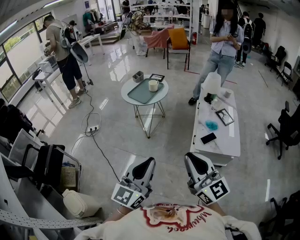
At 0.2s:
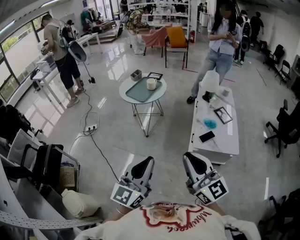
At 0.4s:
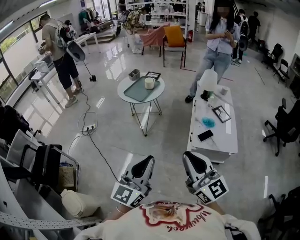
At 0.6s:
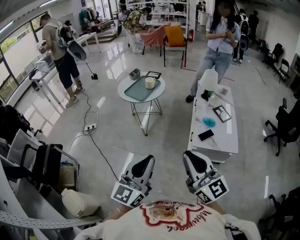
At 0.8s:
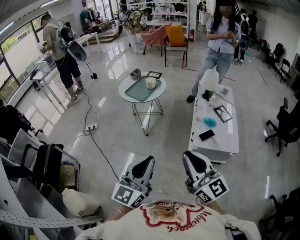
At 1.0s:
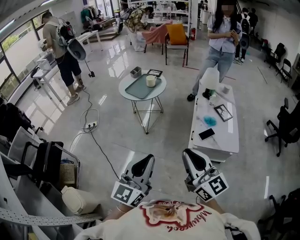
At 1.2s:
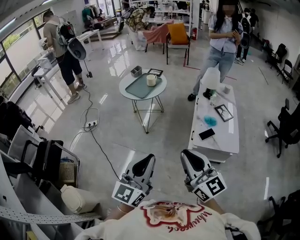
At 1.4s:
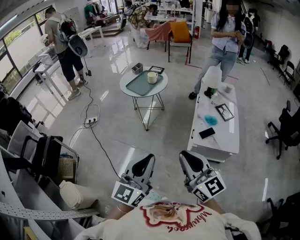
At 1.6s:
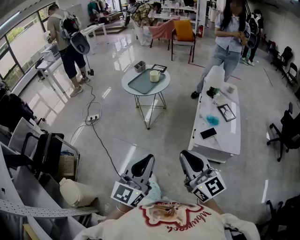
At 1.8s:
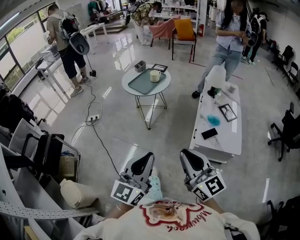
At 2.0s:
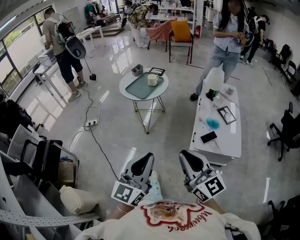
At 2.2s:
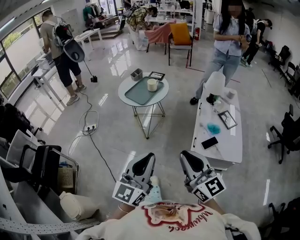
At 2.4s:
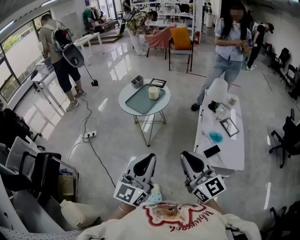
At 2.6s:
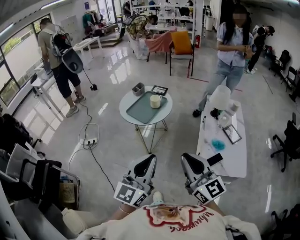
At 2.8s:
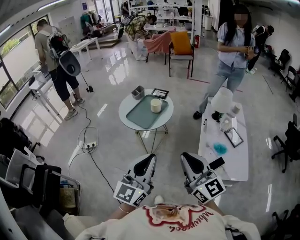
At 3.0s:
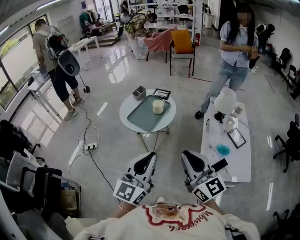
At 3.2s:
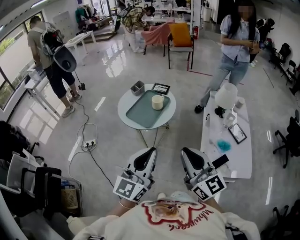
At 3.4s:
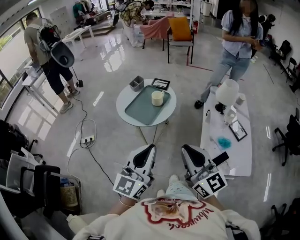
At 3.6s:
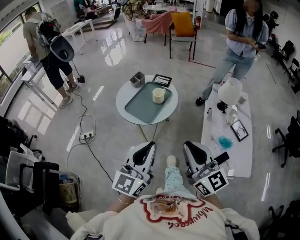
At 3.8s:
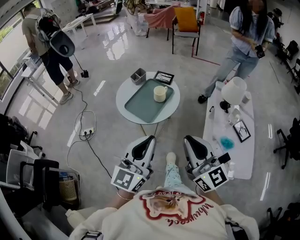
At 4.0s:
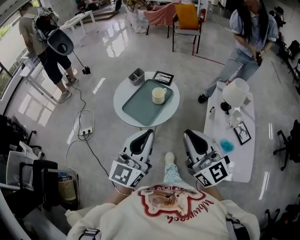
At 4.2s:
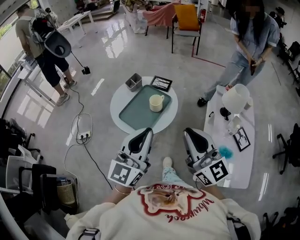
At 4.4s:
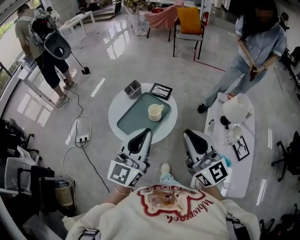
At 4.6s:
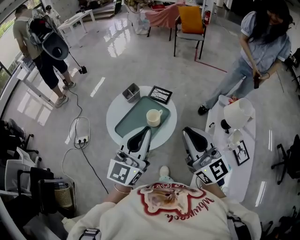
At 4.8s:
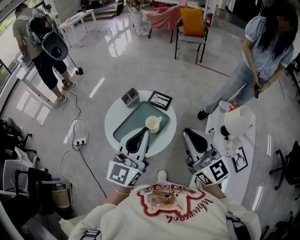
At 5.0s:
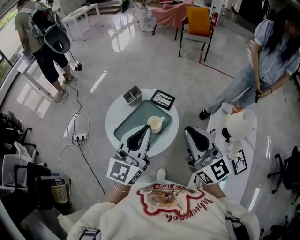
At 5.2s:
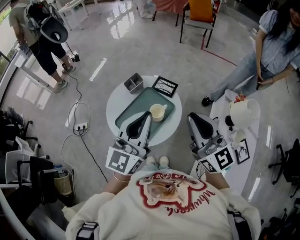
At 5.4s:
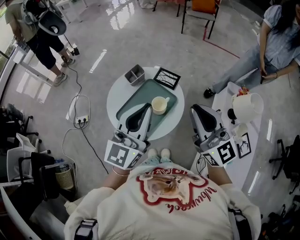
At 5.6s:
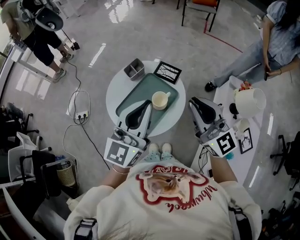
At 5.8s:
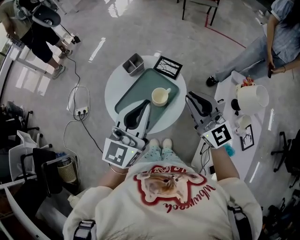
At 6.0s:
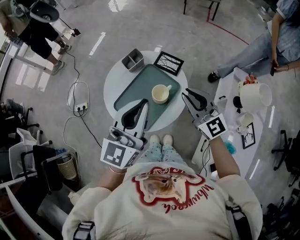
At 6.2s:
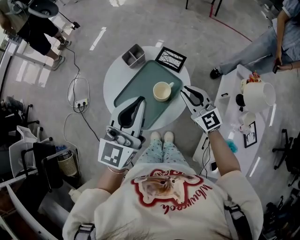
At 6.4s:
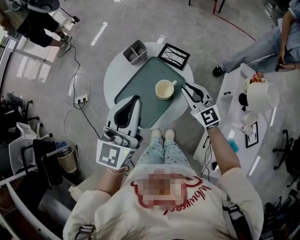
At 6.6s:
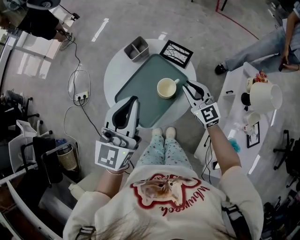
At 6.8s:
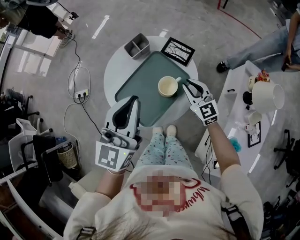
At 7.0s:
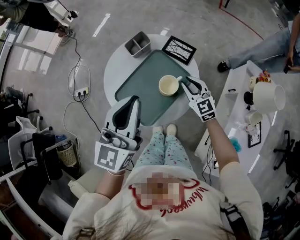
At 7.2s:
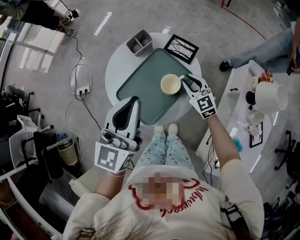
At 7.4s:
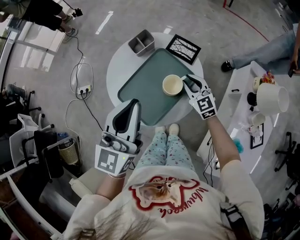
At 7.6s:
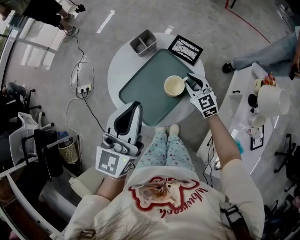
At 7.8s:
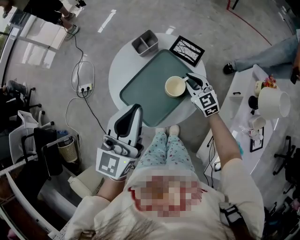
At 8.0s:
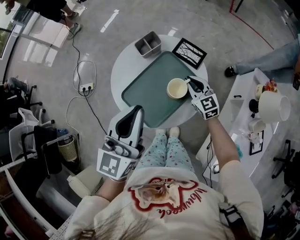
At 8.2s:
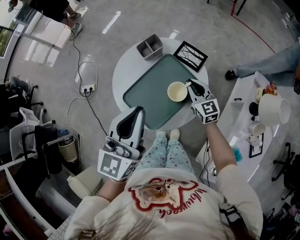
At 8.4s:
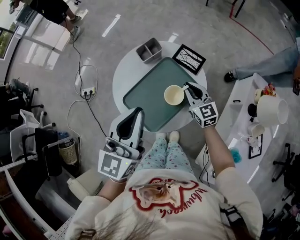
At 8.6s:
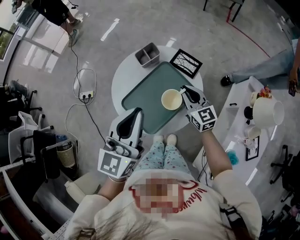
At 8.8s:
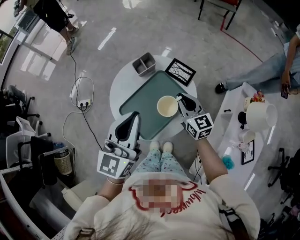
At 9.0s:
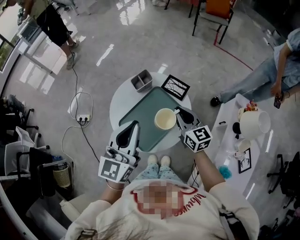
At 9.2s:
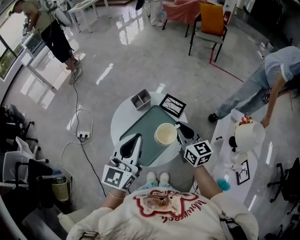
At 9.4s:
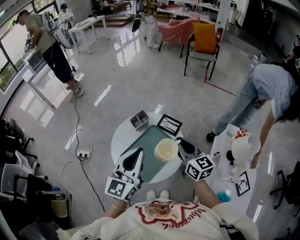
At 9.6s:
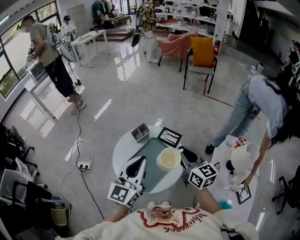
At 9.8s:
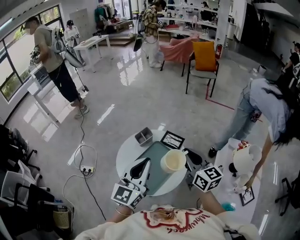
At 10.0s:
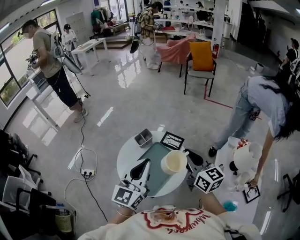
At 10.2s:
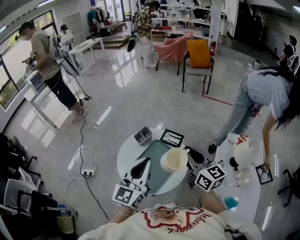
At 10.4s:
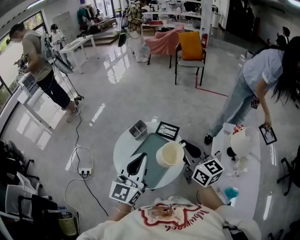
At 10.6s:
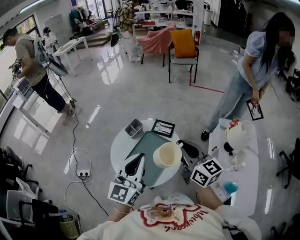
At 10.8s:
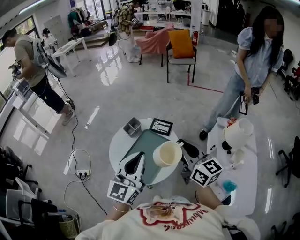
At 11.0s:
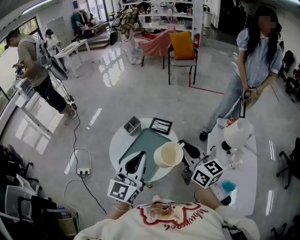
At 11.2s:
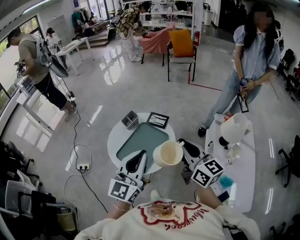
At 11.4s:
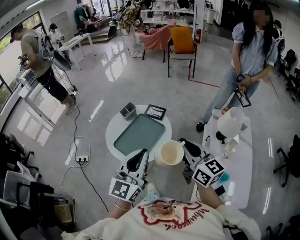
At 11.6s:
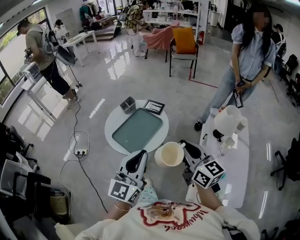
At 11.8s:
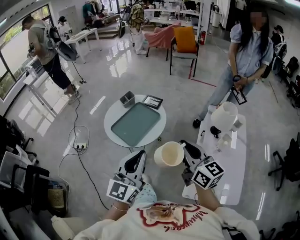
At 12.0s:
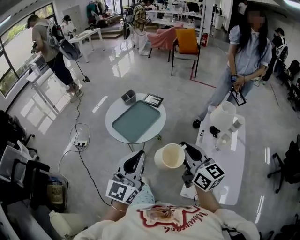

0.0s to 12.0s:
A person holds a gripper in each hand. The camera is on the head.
0.0s to 1.6s: The grippers stay close to where they were, moving slightly.
1.6s to 3.0s: The grippers both shift forward by about 30 cm.
3.0s to 4.4s: Both grippers travel together forward, approximately 25 cm.
4.4s to 6.0s: The right gripper travels forward and downward by roughly 25 cm, and turns by approximately 20 degrees; the left gripper goes roughly 15 cm forward.
6.0s to 7.6s: The left gripper moves to the left and downward, roughly 10 cm; the right gripper travels downward and forward by roughly 20 cm, and swivels approximately 20 degrees.
7.6s to 9.0s: The right gripper is displaced upward by approximately 15 cm, and swivels about 20 degrees.
9.0s to 10.4s: The right gripper goes some 15 cm upward.
10.4s to 12.0s: Both grippers move backward, roughly 30 cm.

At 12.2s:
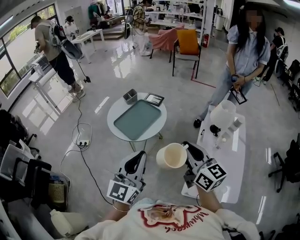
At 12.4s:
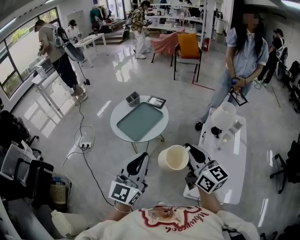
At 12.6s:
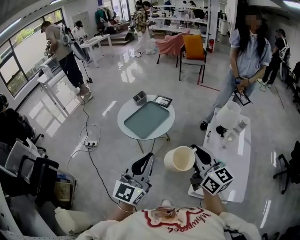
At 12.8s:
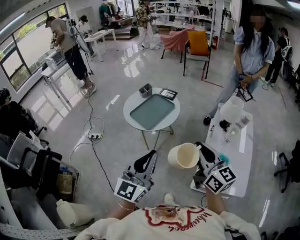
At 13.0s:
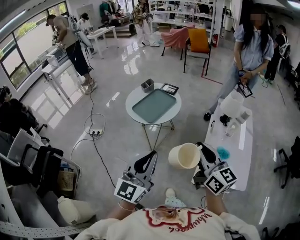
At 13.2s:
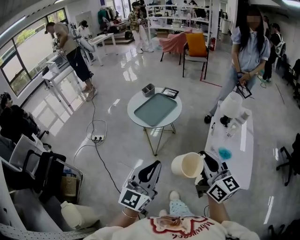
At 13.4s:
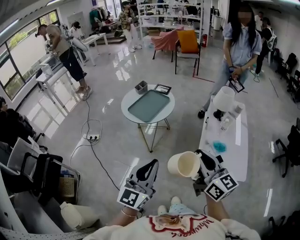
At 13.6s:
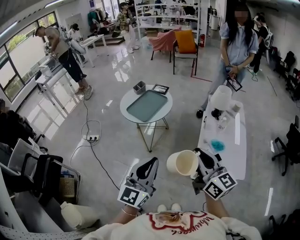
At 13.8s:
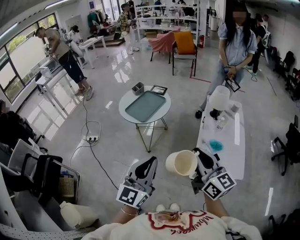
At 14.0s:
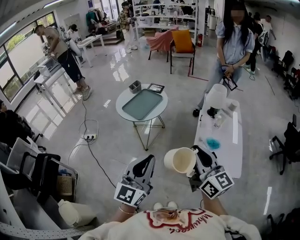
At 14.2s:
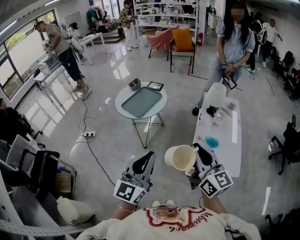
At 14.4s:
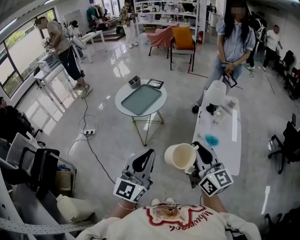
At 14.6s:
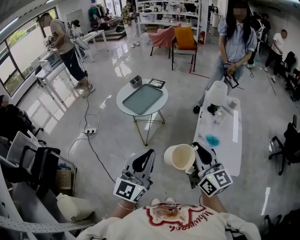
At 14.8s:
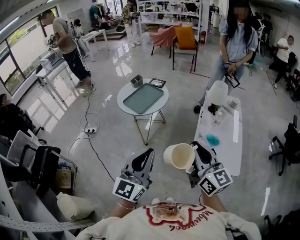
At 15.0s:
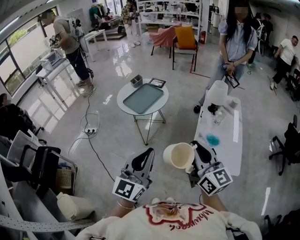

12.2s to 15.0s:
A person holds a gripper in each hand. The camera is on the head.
12.2s to 13.6s: Both grippers travel together backward, about 20 cm.
13.6s to 15.0s: There are only small adjustments of the grippers.

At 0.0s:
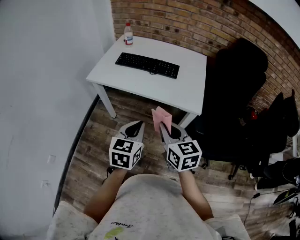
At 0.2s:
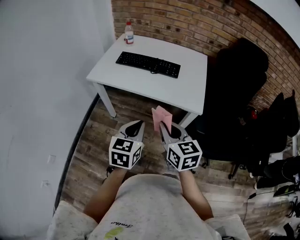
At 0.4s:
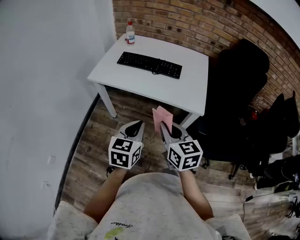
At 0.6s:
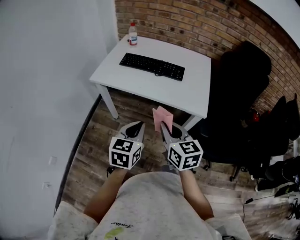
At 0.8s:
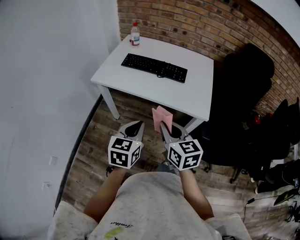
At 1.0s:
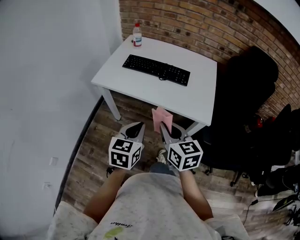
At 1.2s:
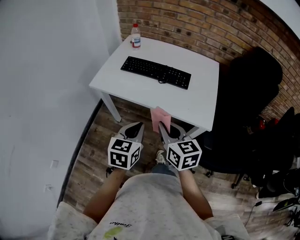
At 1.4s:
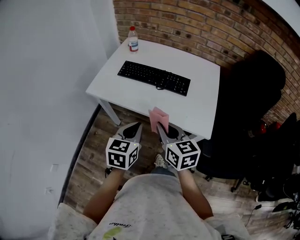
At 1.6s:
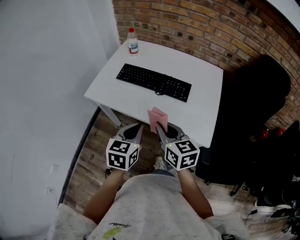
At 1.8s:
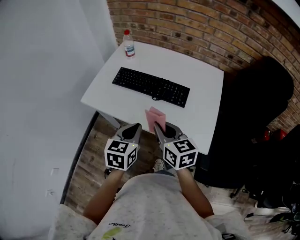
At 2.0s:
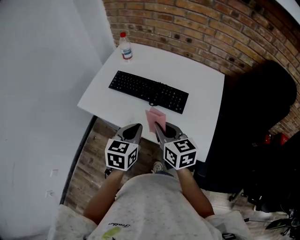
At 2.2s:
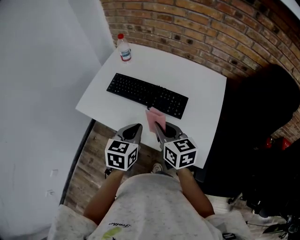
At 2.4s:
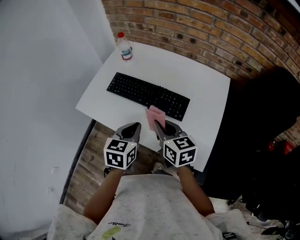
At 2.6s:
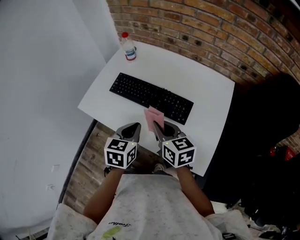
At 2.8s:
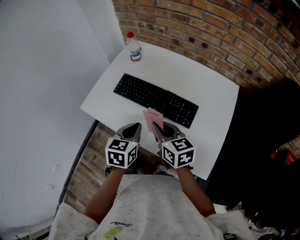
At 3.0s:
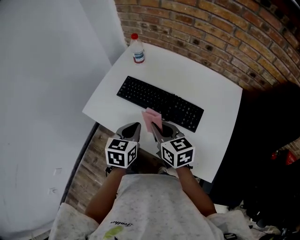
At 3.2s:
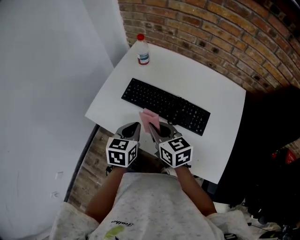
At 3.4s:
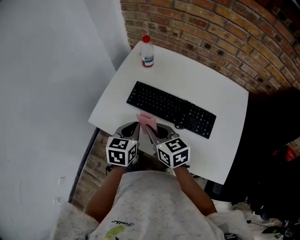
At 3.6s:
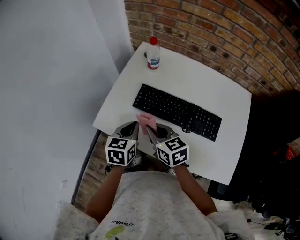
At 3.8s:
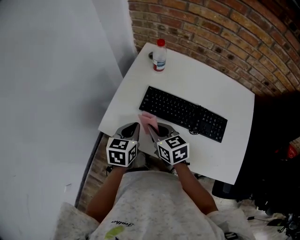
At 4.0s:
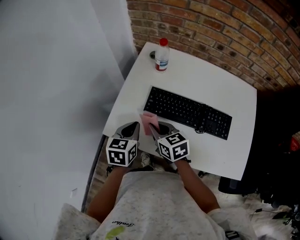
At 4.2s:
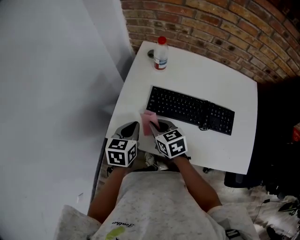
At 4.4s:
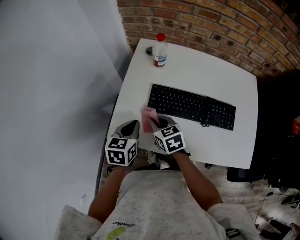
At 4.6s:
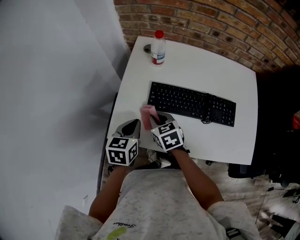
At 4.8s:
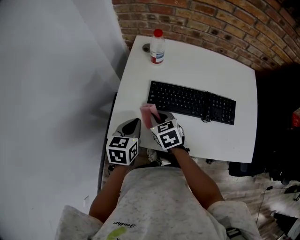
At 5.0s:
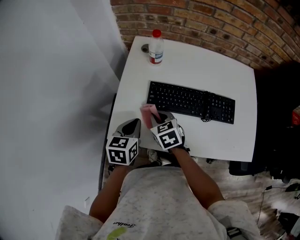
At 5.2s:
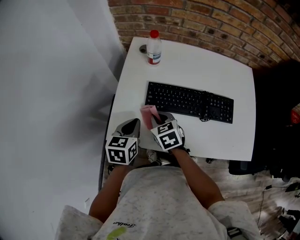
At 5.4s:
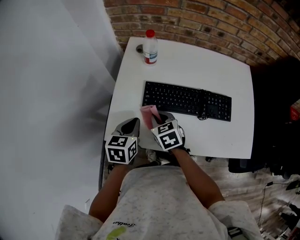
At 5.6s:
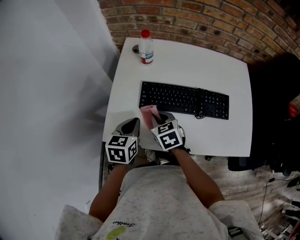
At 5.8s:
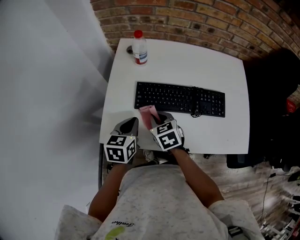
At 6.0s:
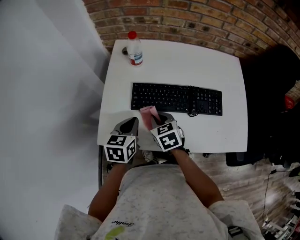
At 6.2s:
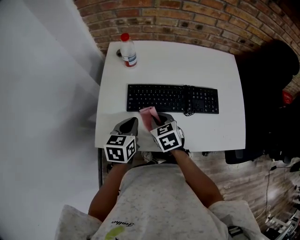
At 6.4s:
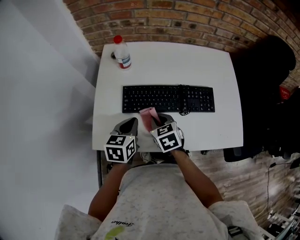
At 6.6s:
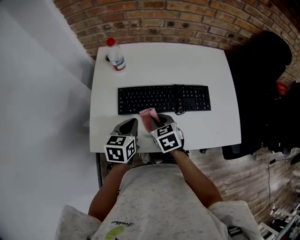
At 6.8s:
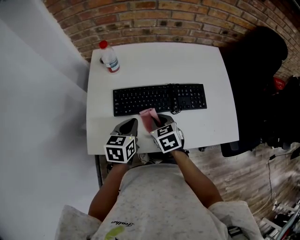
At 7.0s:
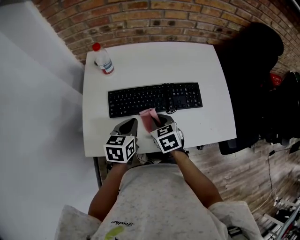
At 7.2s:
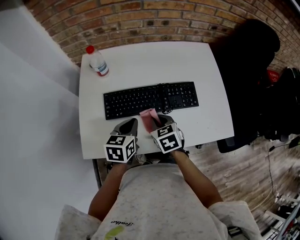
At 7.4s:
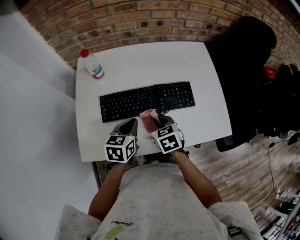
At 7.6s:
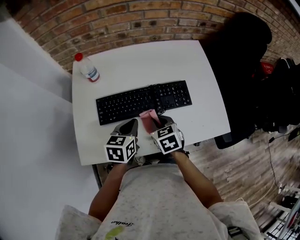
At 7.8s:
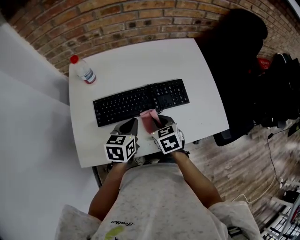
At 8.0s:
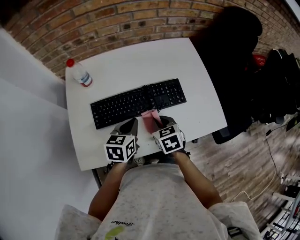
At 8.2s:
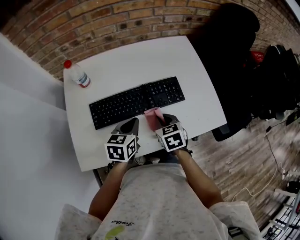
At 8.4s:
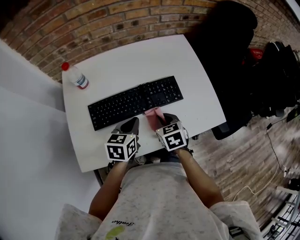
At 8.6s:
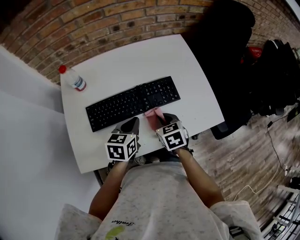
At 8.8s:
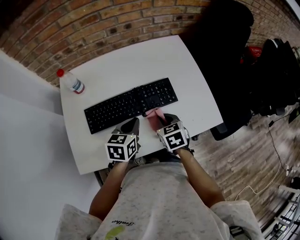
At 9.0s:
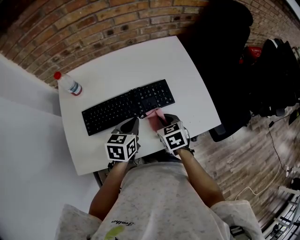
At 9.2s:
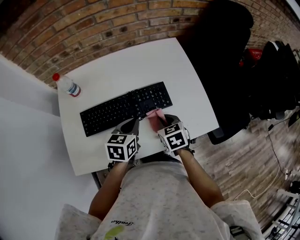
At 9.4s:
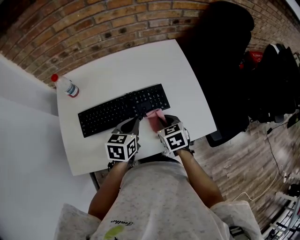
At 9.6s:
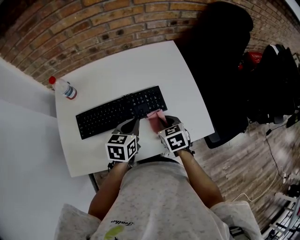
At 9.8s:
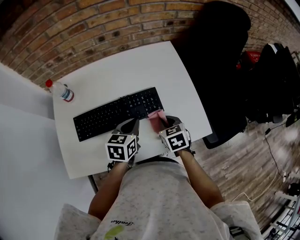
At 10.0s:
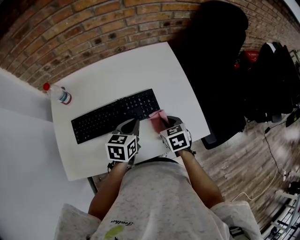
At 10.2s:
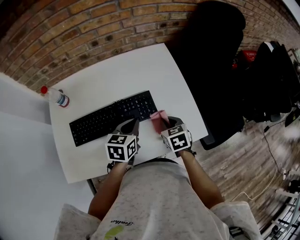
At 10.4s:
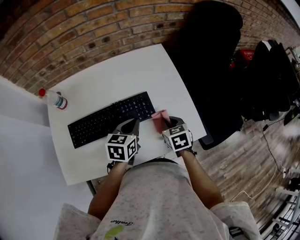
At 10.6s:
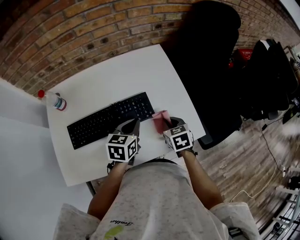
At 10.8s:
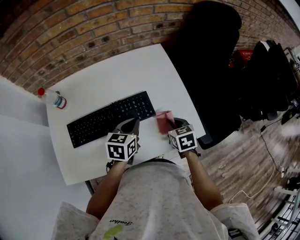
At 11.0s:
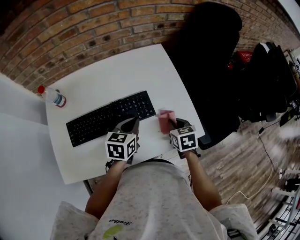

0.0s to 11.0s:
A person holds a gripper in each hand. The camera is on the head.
0.0s to 1.6s: The two grippers go roughly 20 cm forward.
1.6s to 3.2s: Both grippers travel together forward, some 20 cm.
3.2s to 4.8s: The right gripper travels to the left, forward and downward by about 20 cm, and swivels some 30 degrees. Meanwhile the left gripper shifts approximately 20 cm to the left and forward.
4.8s to 6.2s: The grippers both shift to the right by roughly 10 cm.
6.2s to 7.8s: Both grippers move to the right, roughly 15 cm.
7.8s to 9.4s: The two grippers go about 10 cm to the right.
9.4s to 11.0s: The right gripper shifts about 10 cm to the right. The left gripper shifts roughly 5 cm to the right.
